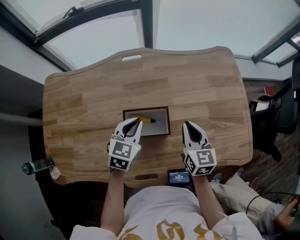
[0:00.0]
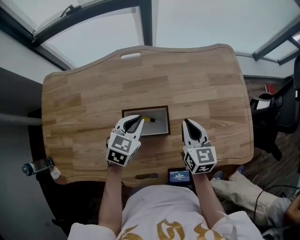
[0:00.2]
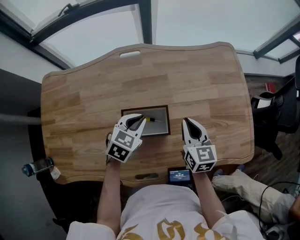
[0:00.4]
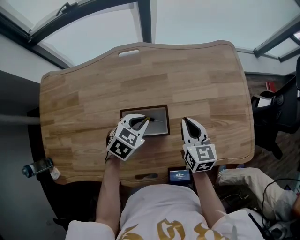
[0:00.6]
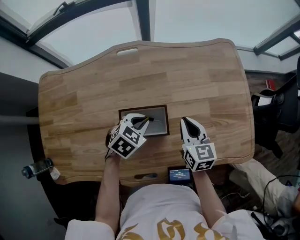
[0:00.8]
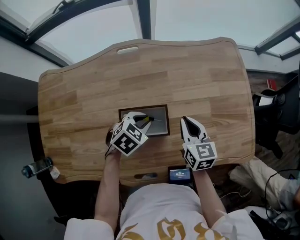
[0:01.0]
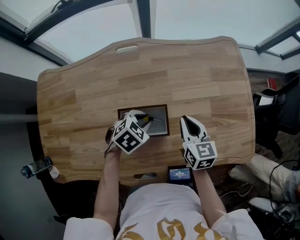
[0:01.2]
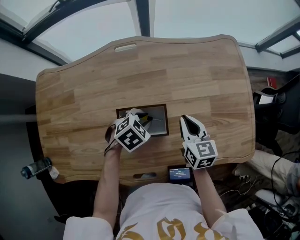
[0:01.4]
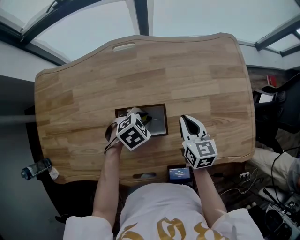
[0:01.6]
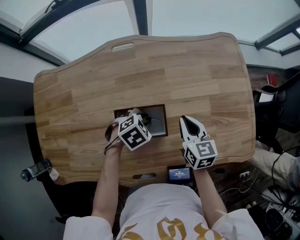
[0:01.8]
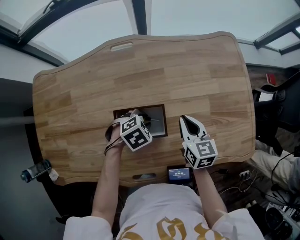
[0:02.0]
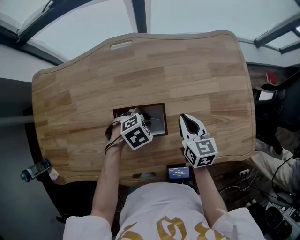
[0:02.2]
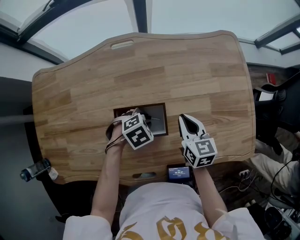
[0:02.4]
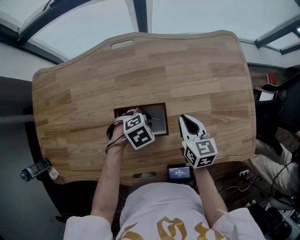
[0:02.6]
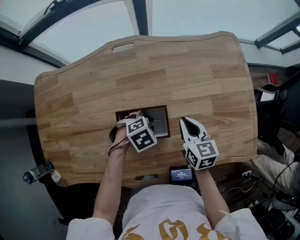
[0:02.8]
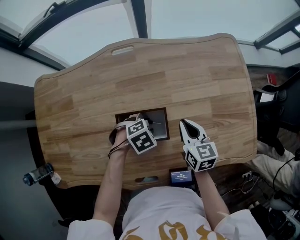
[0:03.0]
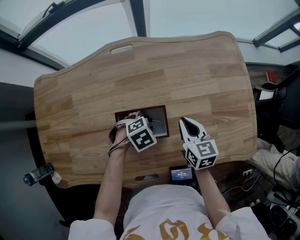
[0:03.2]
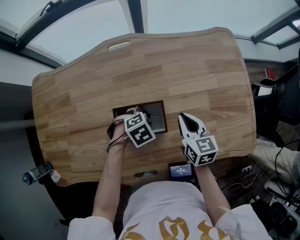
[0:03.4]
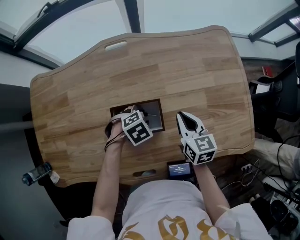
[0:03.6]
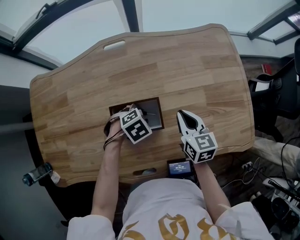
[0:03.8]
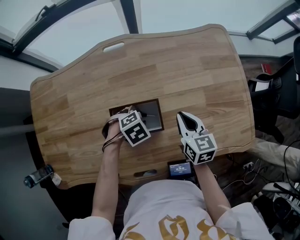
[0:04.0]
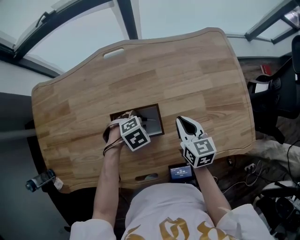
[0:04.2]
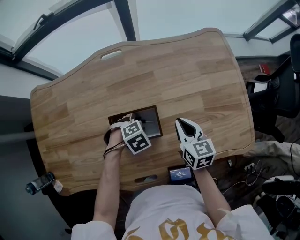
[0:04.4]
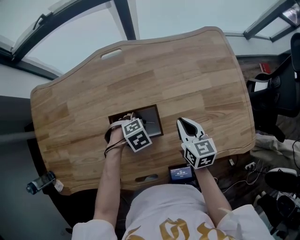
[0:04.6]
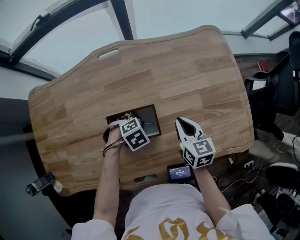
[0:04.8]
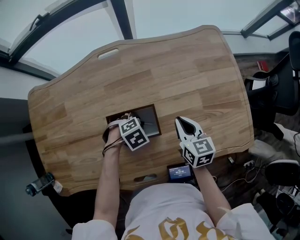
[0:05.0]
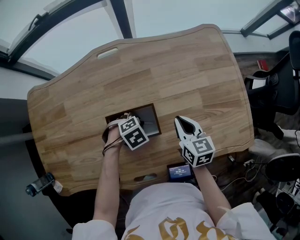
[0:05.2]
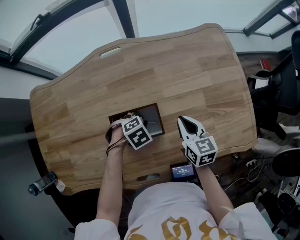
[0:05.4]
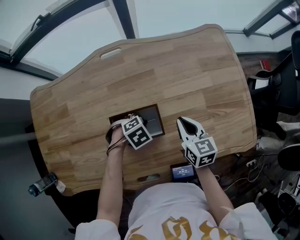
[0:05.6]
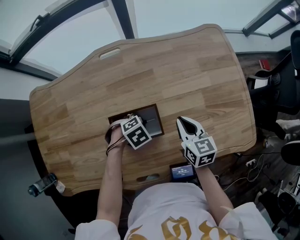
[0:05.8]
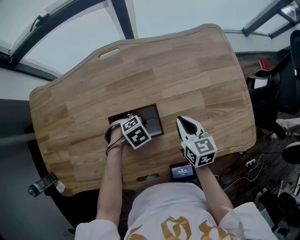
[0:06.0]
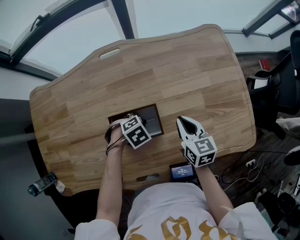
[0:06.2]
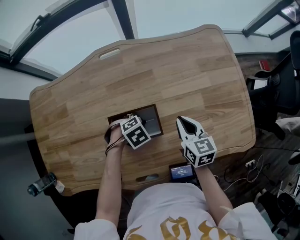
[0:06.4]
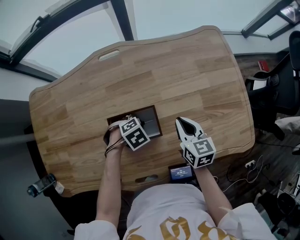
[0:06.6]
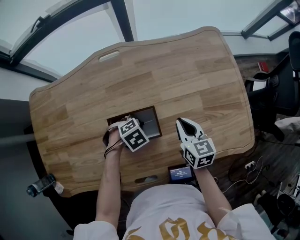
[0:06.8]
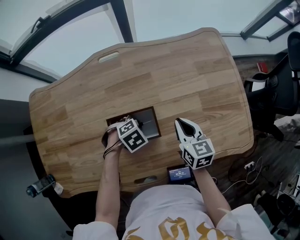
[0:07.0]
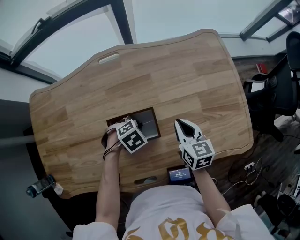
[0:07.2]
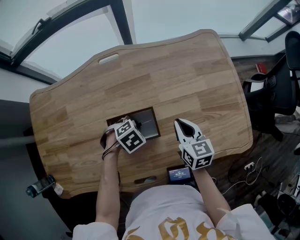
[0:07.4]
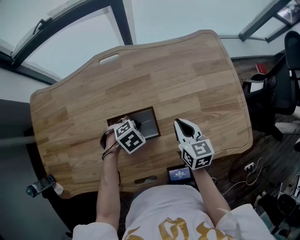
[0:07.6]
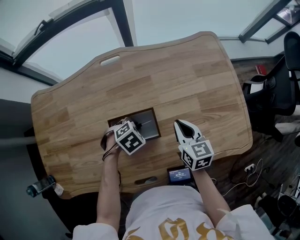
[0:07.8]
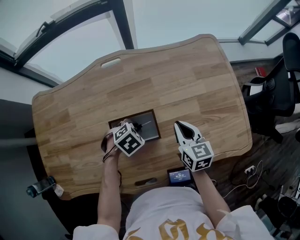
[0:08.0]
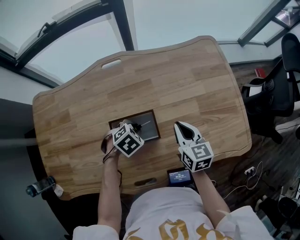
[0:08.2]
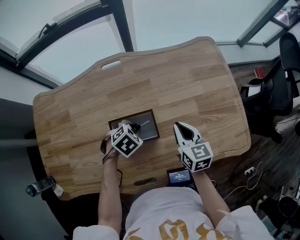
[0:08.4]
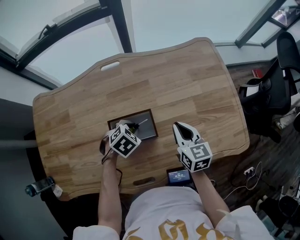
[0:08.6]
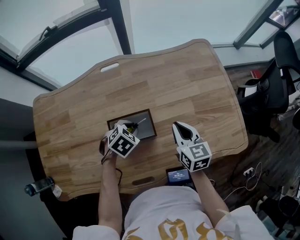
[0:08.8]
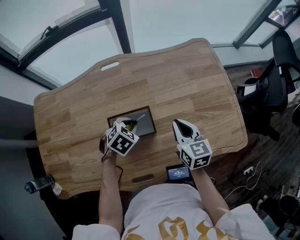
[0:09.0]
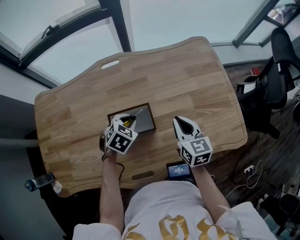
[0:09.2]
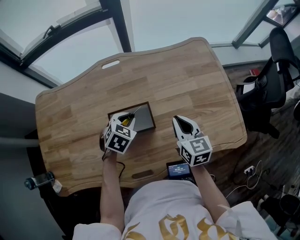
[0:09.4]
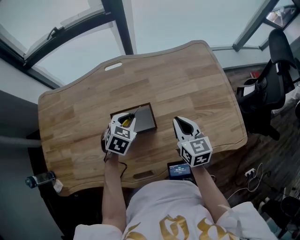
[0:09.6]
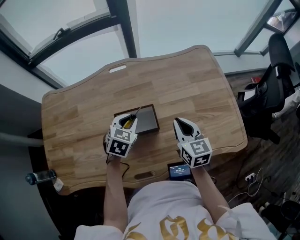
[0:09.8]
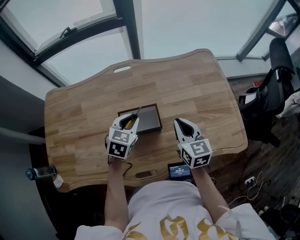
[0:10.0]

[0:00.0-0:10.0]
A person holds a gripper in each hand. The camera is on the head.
0.0 to 1.4 s: The right gripper shifts roughly 5 cm downward; the left gripper is displaced downward by about 10 cm, turns by roughly 40 degrees, and opens its fingers.
1.4 to 4.2 s: The grippers stay close to where they were, moving slightly.
4.2 to 8.6 s: The grippers move only a little.
8.6 to 10.0 s: The left gripper goes some 10 cm upward, and turns by roughly 40 degrees. Meanwhile the right gripper goes about 5 cm upward.

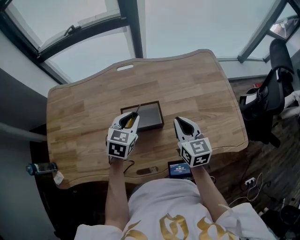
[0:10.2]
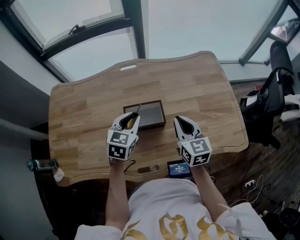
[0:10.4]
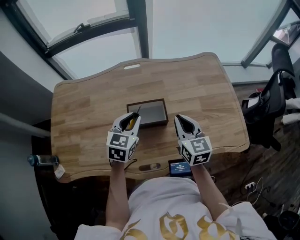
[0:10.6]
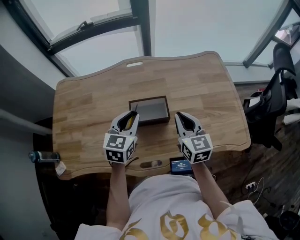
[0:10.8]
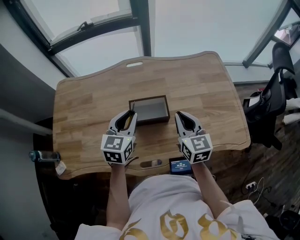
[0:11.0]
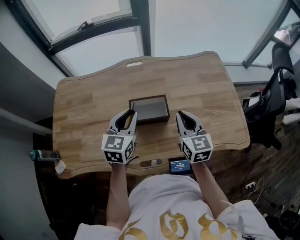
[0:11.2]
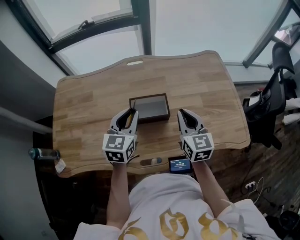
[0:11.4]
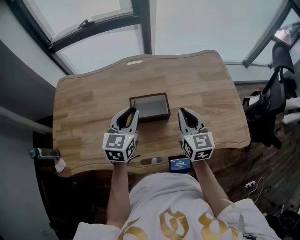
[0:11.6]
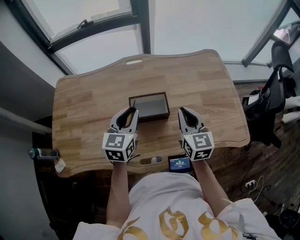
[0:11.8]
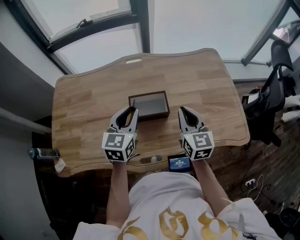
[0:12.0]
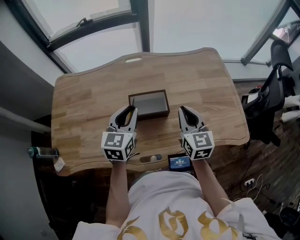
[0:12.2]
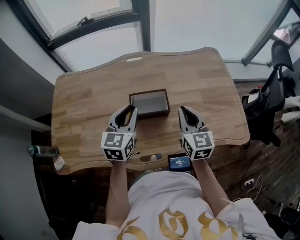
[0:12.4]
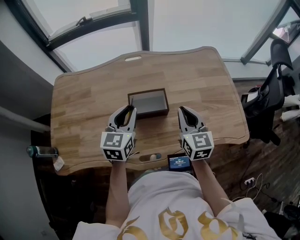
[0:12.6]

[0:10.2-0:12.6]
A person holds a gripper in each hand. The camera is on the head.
10.2 to 11.4 s: The right gripper ends up approximately 5 cm from where it was; the left gripper moves upward and backward, roughly 10 cm.
11.4 to 12.6 s: Both grippers stay about where they are.

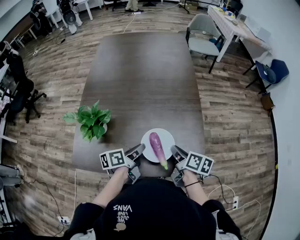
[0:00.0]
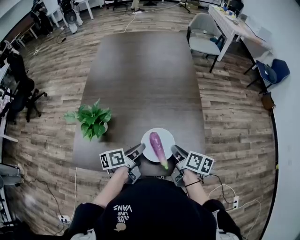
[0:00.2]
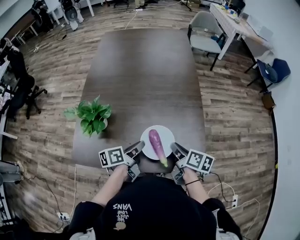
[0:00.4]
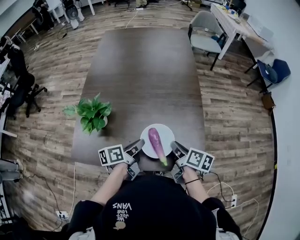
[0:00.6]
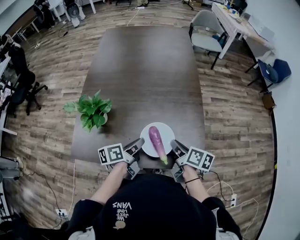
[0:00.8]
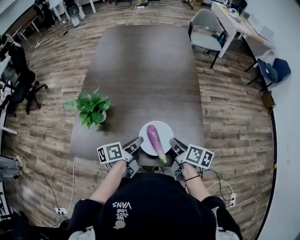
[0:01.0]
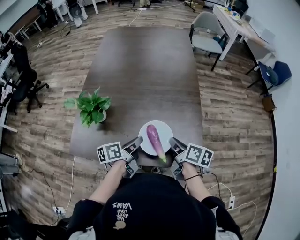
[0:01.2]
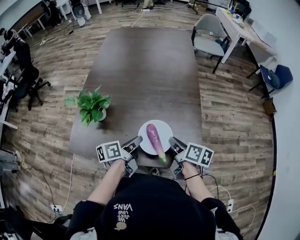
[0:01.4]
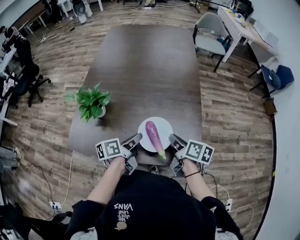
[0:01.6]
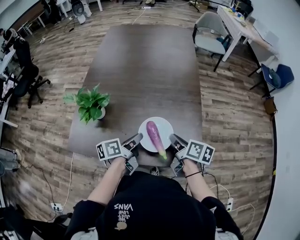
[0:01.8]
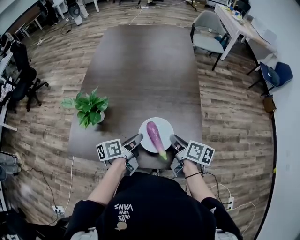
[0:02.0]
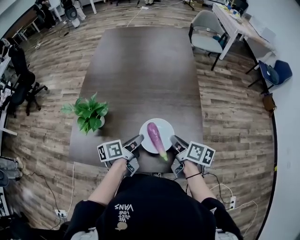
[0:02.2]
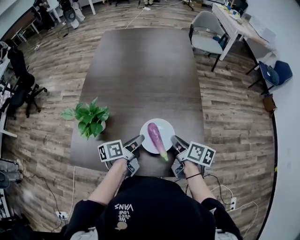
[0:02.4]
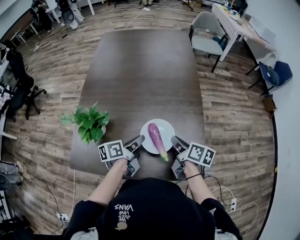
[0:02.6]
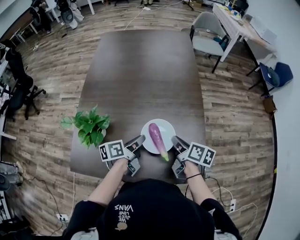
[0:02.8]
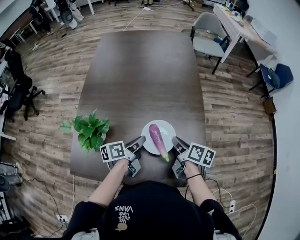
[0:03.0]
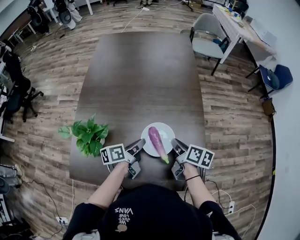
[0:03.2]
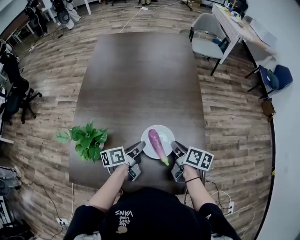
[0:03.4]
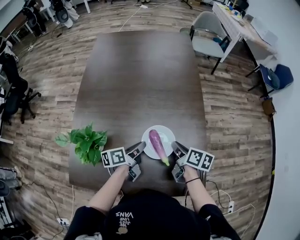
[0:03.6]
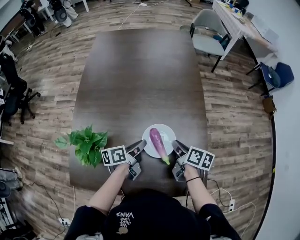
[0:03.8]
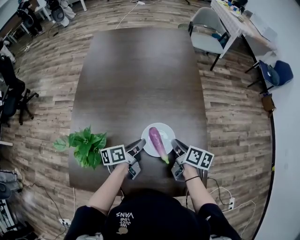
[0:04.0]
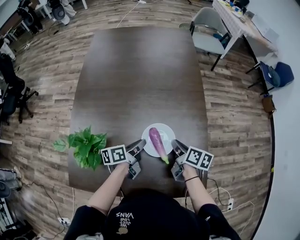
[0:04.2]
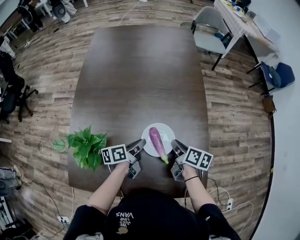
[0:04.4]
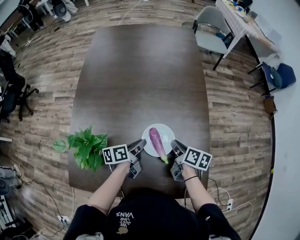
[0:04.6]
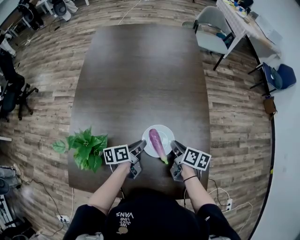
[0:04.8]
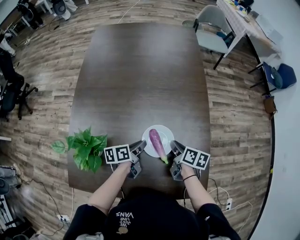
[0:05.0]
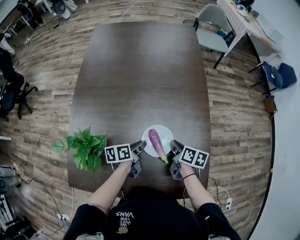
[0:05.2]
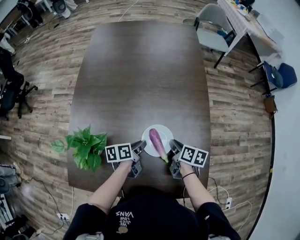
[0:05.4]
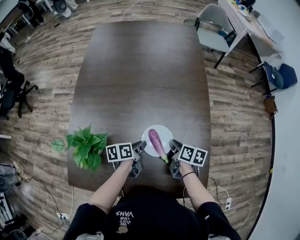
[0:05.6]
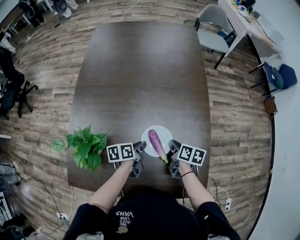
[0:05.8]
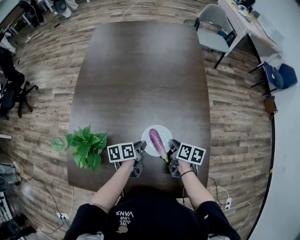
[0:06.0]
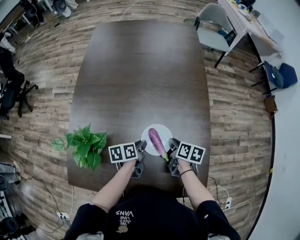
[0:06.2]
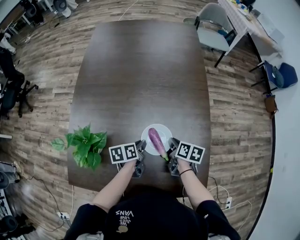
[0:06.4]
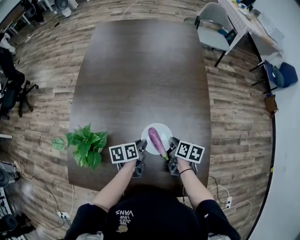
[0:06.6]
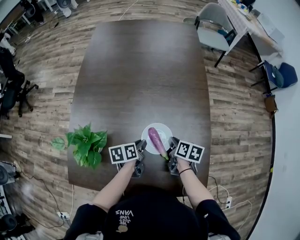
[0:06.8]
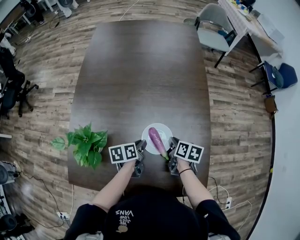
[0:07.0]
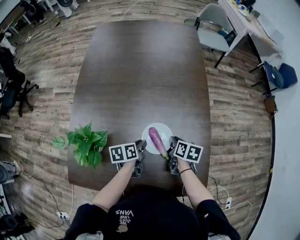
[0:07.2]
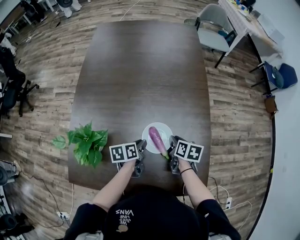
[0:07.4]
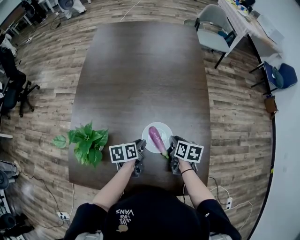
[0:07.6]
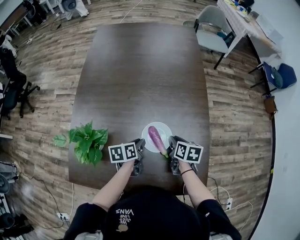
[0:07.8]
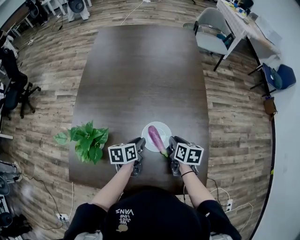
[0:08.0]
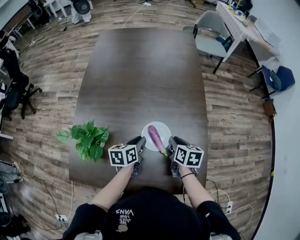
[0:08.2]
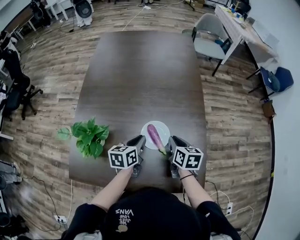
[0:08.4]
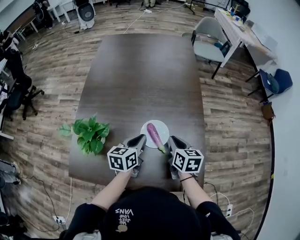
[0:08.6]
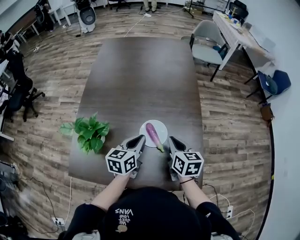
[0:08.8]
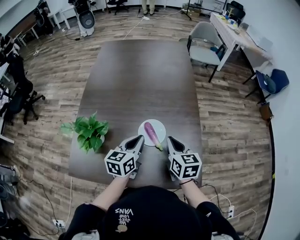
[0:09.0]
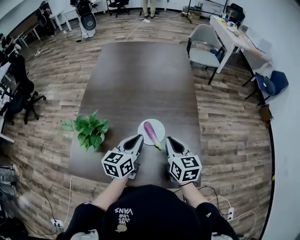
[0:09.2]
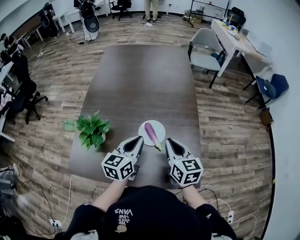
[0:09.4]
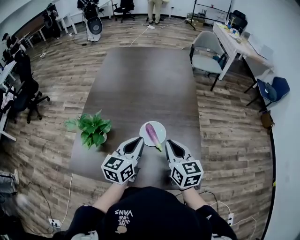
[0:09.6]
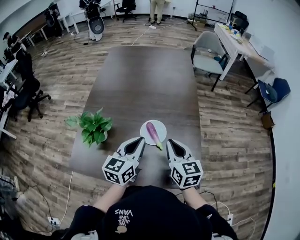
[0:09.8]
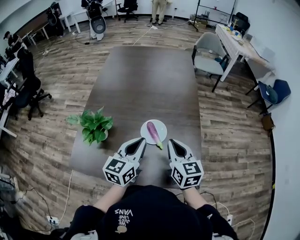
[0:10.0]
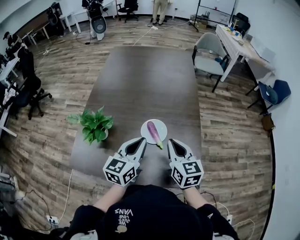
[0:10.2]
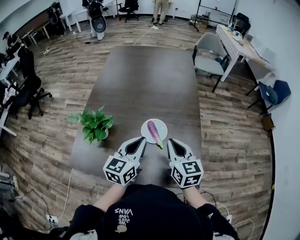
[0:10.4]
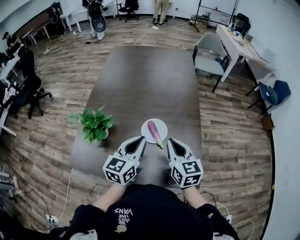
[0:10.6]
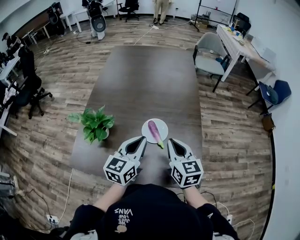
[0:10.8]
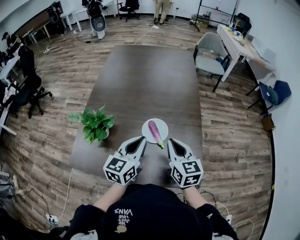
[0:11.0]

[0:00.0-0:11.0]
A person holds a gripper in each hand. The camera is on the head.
0.0 to 1.6 s: The grippers move only a little.
1.6 to 3.2 s: Both grippers move forward, about 15 cm.
3.2 to 4.8 s: Both grippers travel together downward, about 5 cm.
4.8 to 6.2 s: There are only small adjustments of the grippers.
6.2 to 7.8 s: The grippers move only a little.
7.8 to 9.4 s: The right gripper is displaced upward and backward by approximately 20 cm, and swivels about 40 degrees. The left gripper heads upward, covering approximately 20 cm, and turns by approximately 40 degrees.
9.4 to 11.0 s: The grippers stay close to where they were, moving slightly.

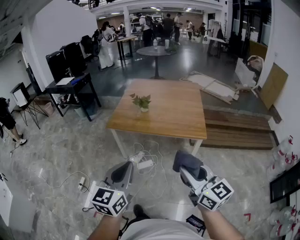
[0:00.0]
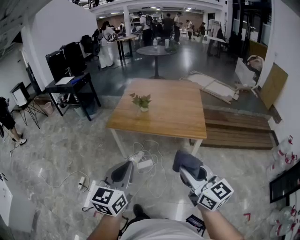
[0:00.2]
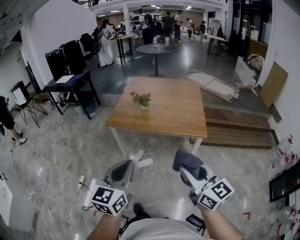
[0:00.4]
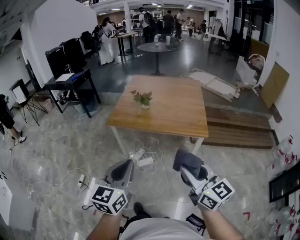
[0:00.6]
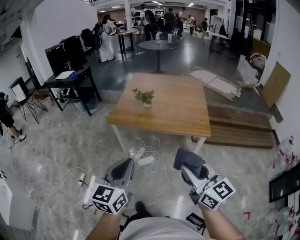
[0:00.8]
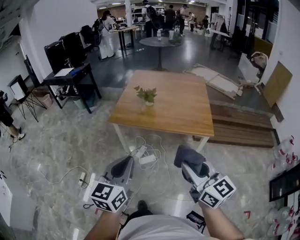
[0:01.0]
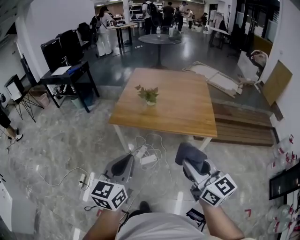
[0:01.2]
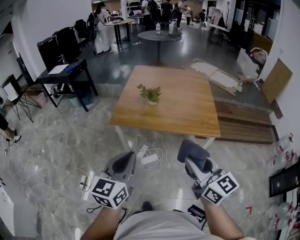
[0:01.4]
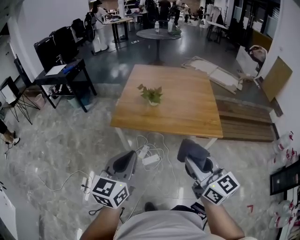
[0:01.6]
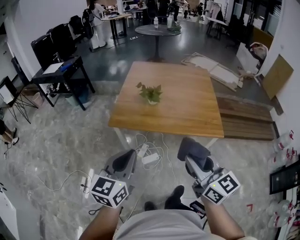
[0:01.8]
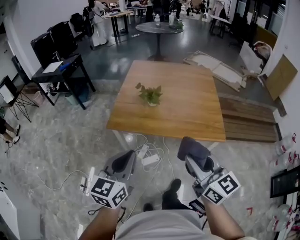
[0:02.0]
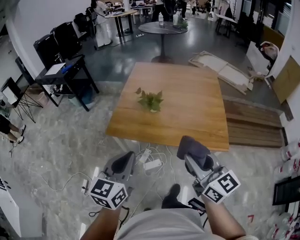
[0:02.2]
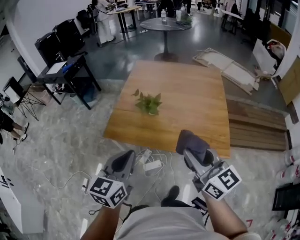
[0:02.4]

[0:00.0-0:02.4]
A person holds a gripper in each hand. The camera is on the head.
0.0 to 1.2 s: The two grippers go about 15 cm forward and to the left.
1.2 to 2.4 s: The grippers both shift forward by some 35 cm.
